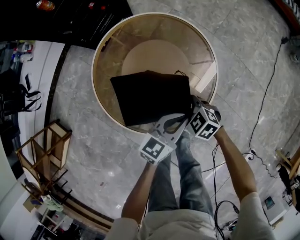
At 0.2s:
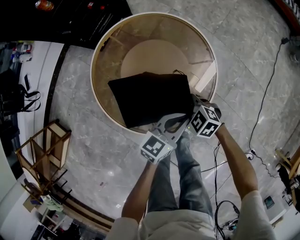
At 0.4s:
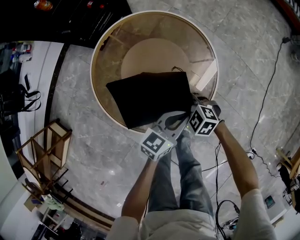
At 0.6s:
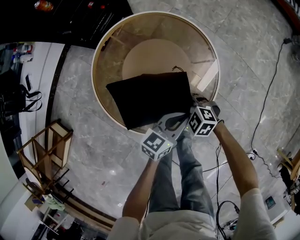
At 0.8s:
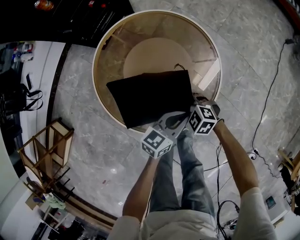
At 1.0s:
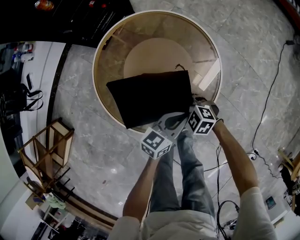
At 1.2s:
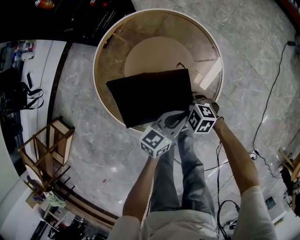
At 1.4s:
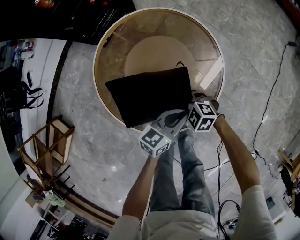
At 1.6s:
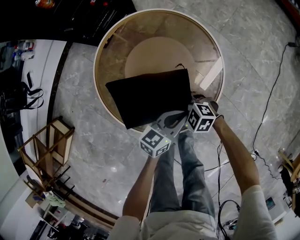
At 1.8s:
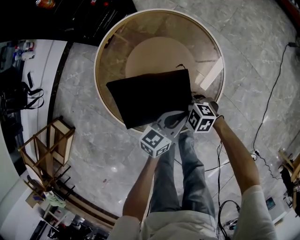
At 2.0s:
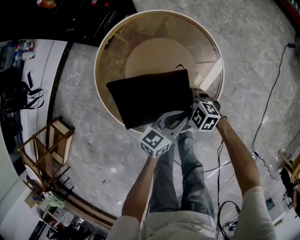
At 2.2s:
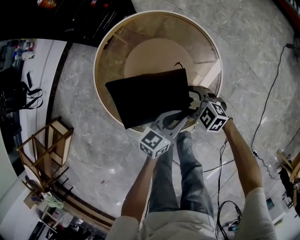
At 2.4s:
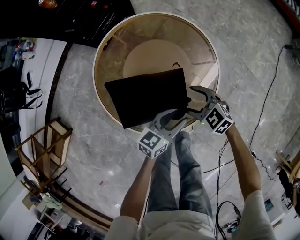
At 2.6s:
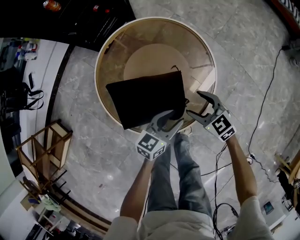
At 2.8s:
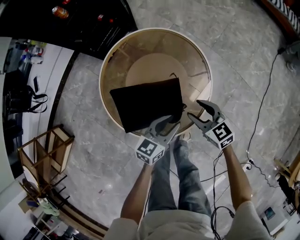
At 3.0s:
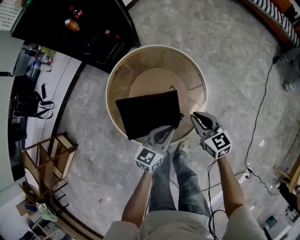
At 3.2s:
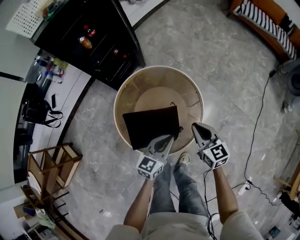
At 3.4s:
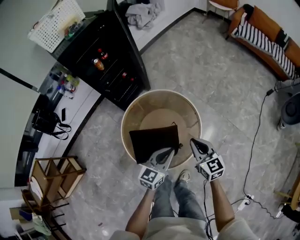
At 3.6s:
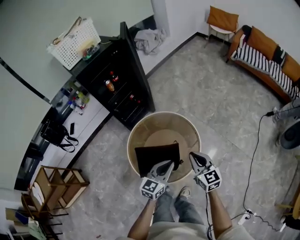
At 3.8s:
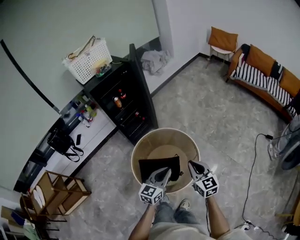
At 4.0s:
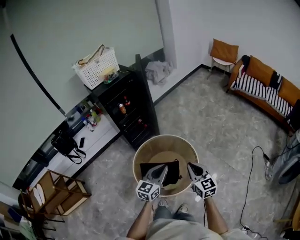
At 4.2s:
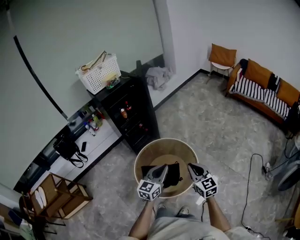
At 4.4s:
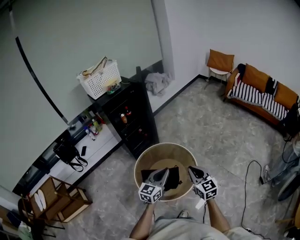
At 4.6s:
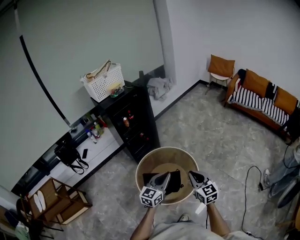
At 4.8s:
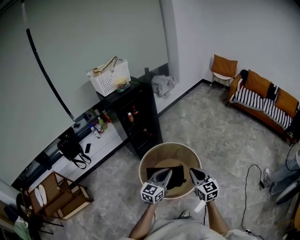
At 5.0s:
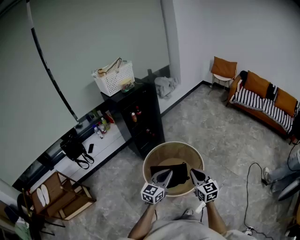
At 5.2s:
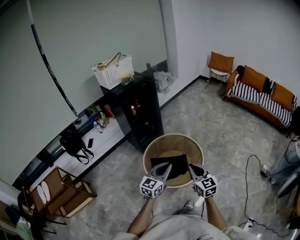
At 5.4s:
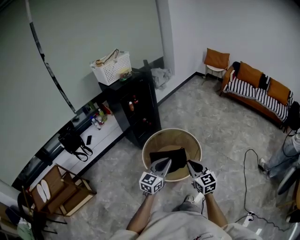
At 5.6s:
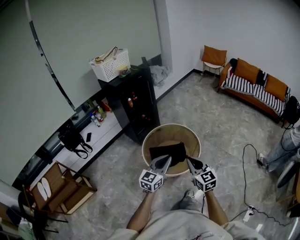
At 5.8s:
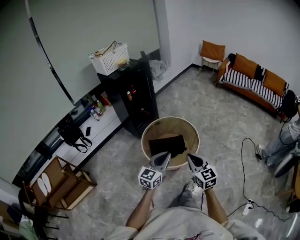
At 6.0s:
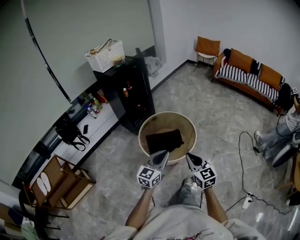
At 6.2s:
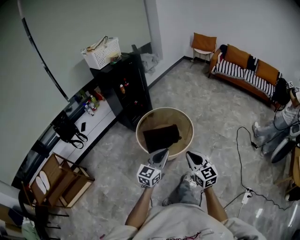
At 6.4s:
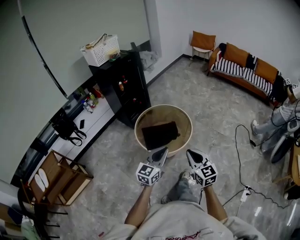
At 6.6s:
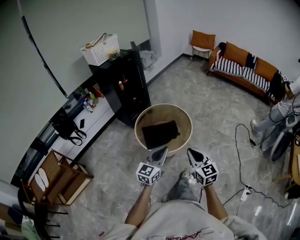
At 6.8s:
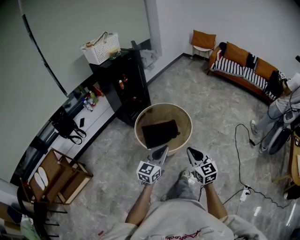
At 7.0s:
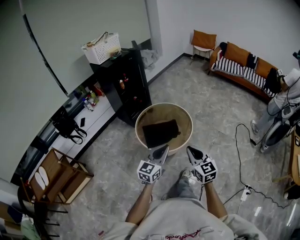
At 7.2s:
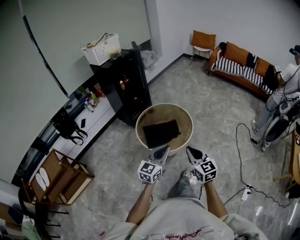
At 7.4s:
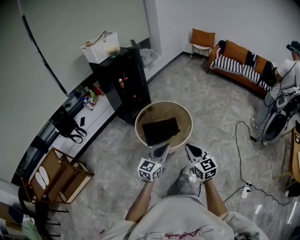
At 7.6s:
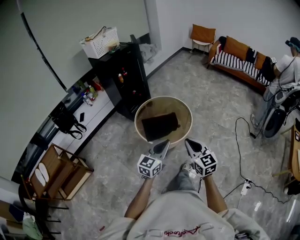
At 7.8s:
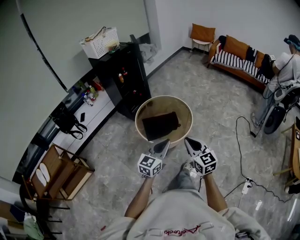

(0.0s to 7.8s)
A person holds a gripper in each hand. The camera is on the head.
0.0s - 1.6s: The left gripper moves downward, roughly 5 cm; the right gripper ends up approximately 5 cm from where it was.
1.6s - 3.2s: The right gripper goes roughly 25 cm upward, swivels about 60 degrees, and closes. Meanwhile the left gripper moves upward, approximately 15 cm, turns by approximately 20 degrees, and opens, then closes once more.
3.2s - 4.6s: The left gripper goes some 25 cm upward, while the right gripper travels upward and backward by about 30 cm.
4.6s - 6.2s: The grippers both shift backward by some 30 cm.
6.2s - 7.8s: There are only small adjustments of the grippers.

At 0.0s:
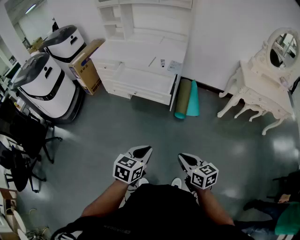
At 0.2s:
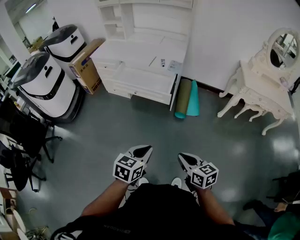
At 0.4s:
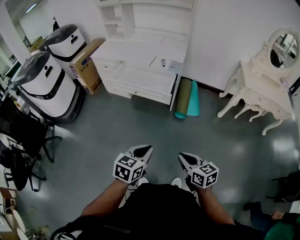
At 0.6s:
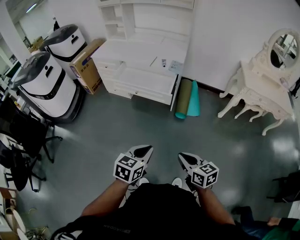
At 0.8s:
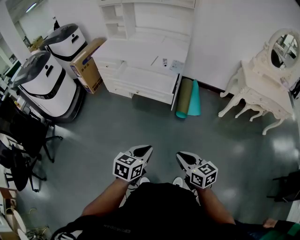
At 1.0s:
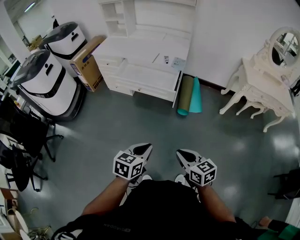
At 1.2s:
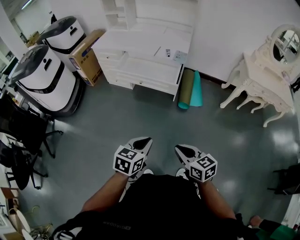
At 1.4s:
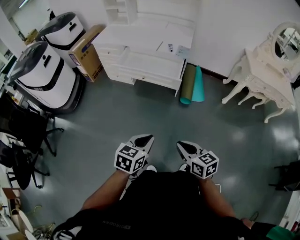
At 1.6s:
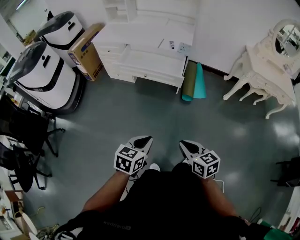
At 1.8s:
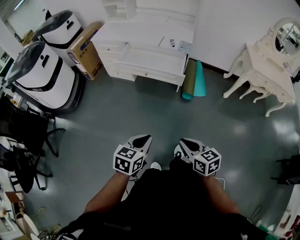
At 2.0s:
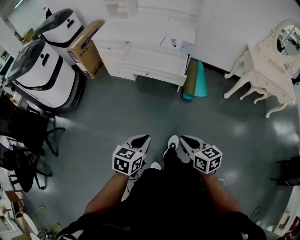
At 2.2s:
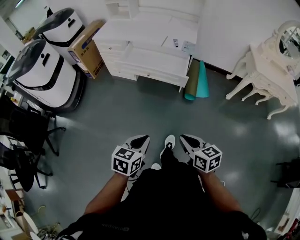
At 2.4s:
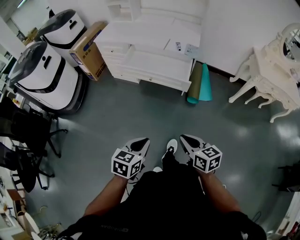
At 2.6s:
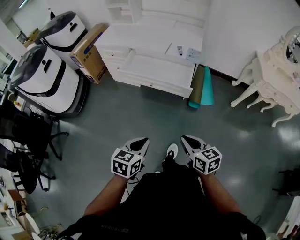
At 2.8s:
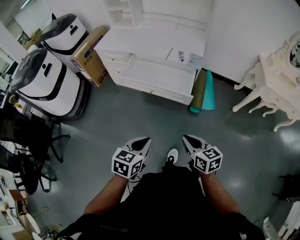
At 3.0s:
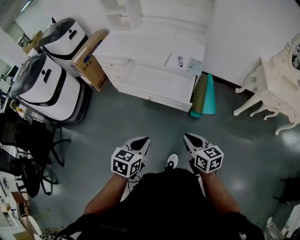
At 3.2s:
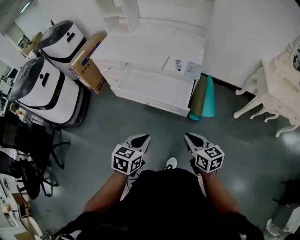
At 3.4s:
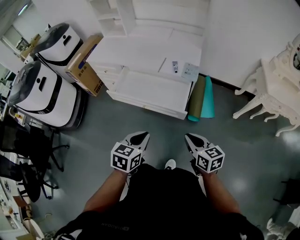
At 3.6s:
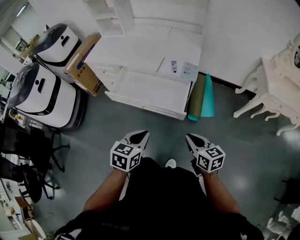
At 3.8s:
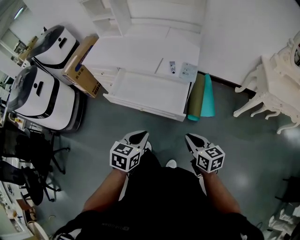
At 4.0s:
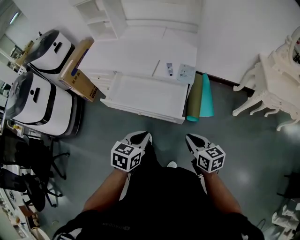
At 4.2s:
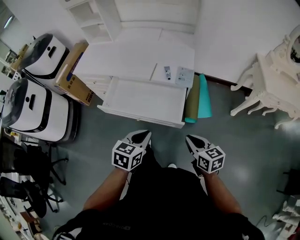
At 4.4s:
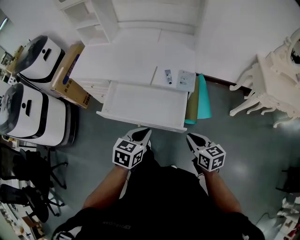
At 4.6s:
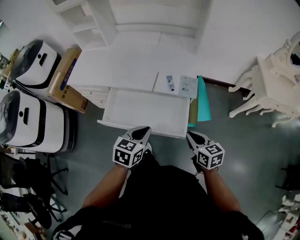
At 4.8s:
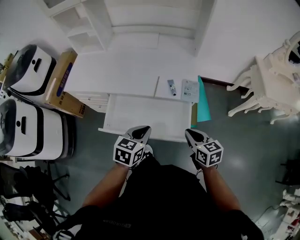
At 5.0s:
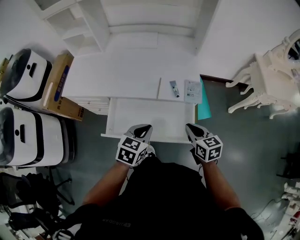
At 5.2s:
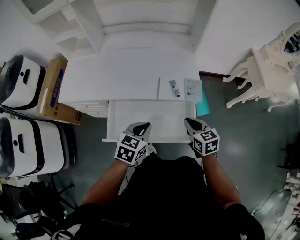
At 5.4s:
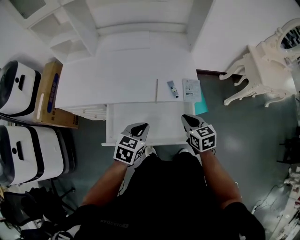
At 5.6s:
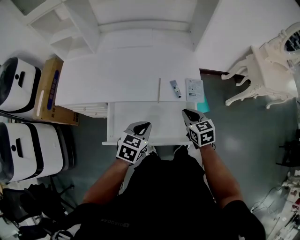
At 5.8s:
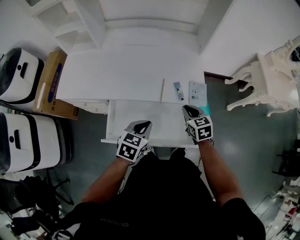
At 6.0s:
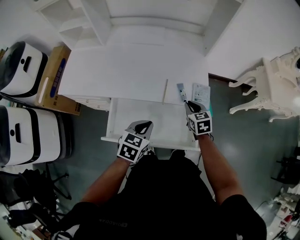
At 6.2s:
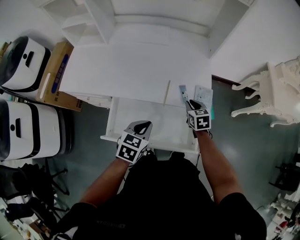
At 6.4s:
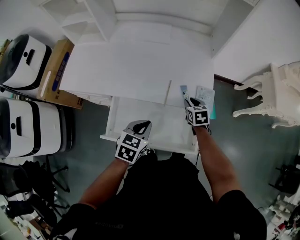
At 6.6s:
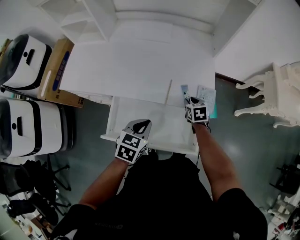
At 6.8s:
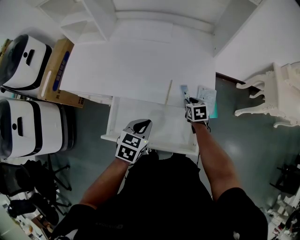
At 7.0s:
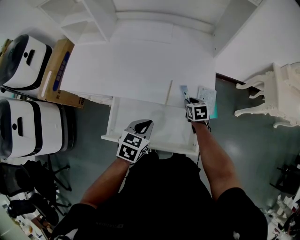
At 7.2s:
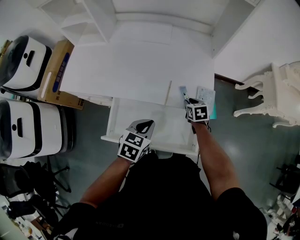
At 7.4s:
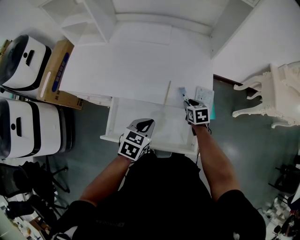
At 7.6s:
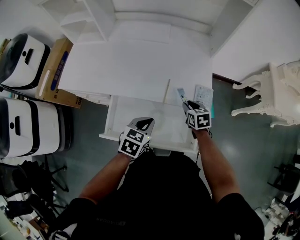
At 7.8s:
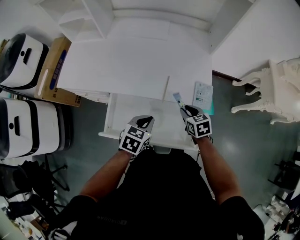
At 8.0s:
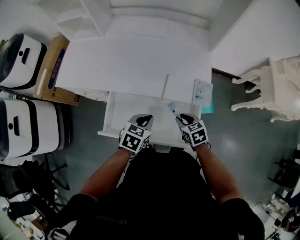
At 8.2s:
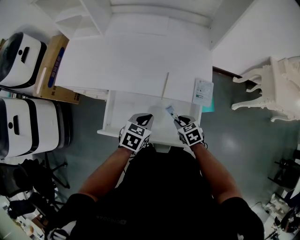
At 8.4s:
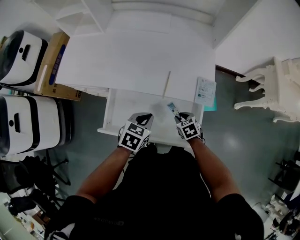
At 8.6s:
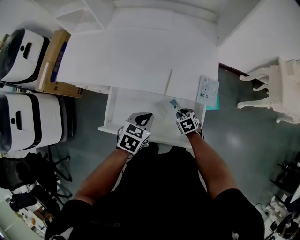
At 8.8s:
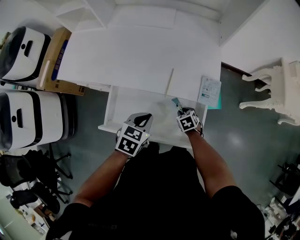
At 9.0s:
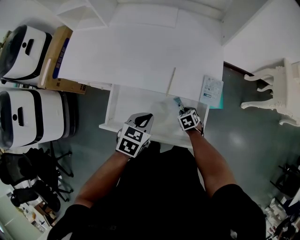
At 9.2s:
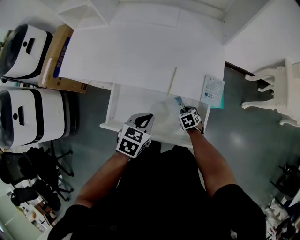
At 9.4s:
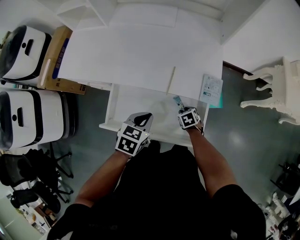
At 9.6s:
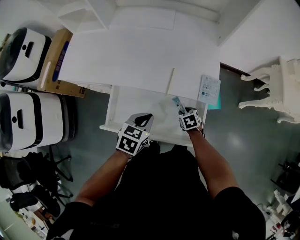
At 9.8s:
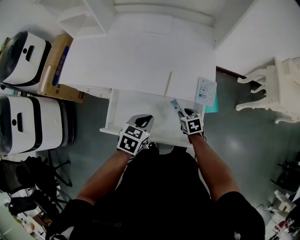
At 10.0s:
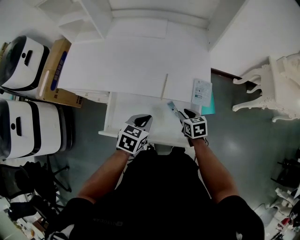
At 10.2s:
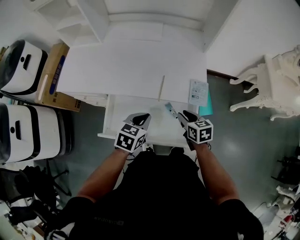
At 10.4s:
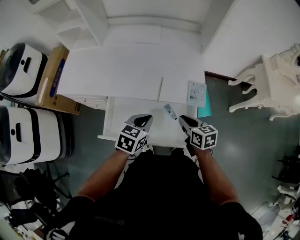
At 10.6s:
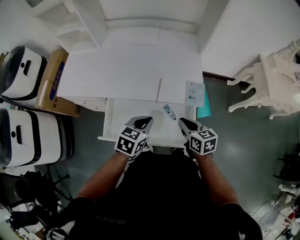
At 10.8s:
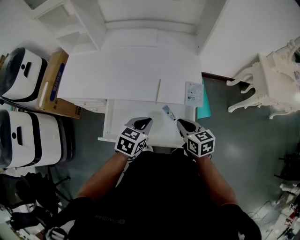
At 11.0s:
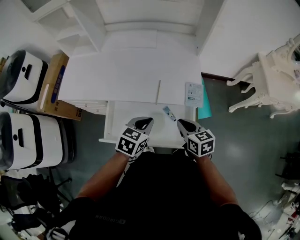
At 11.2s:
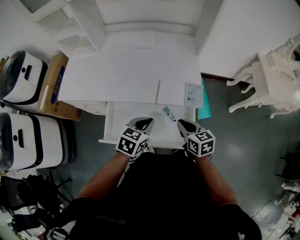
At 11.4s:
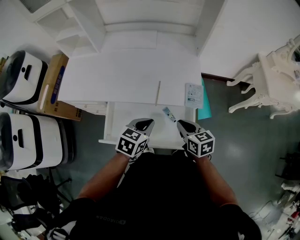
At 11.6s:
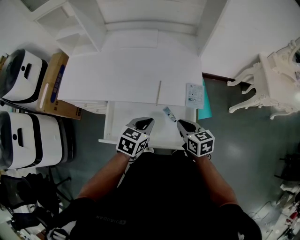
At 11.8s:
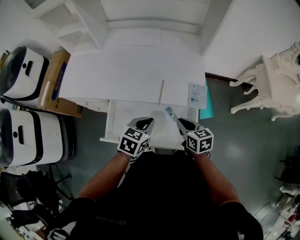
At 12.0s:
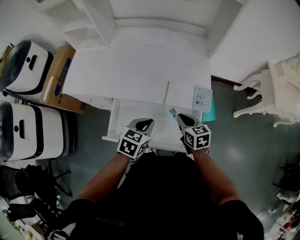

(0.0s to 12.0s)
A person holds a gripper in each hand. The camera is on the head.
0.0s - 1.6s: Both grippers travel together to the left, about 10 cm.
1.6s - 3.0s: The grippers both shift forward by roughly 20 cm.
3.0s - 4.4s: The two grippers go about 20 cm forward.
4.4s - 6.0s: Both grippers travel together forward and to the left, roughly 25 cm. The right gripper turns by some 20 degrees.
7.6s - 9.0s: The right gripper shifts approximately 20 cm downward and backward, and turns by about 20 degrees.
9.0s - 10.4s: The right gripper is displaced upward by about 25 cm, and points its fingers approximately 30 degrees further upward.
10.4s - 12.0s: There are only small adjustments of the grippers.

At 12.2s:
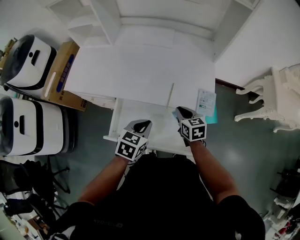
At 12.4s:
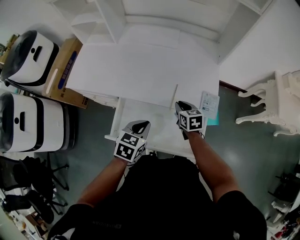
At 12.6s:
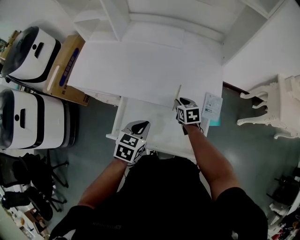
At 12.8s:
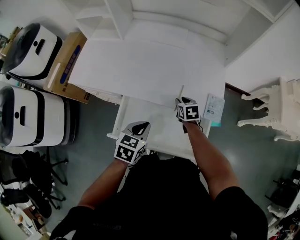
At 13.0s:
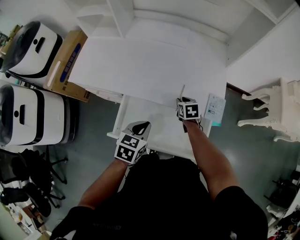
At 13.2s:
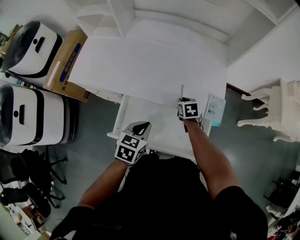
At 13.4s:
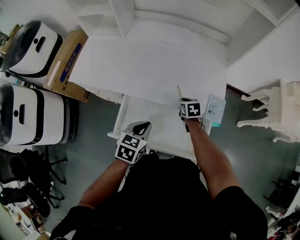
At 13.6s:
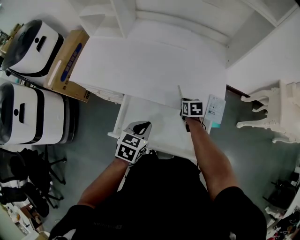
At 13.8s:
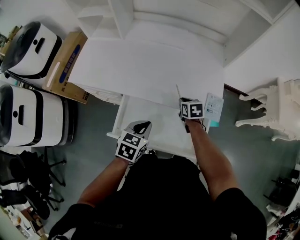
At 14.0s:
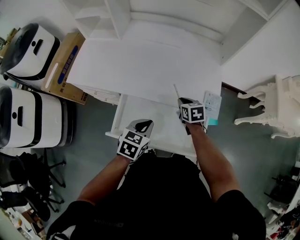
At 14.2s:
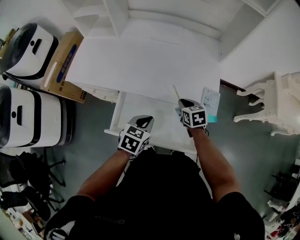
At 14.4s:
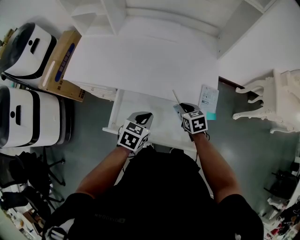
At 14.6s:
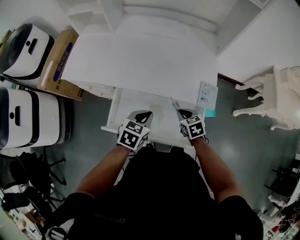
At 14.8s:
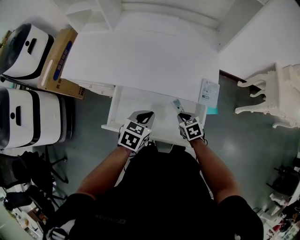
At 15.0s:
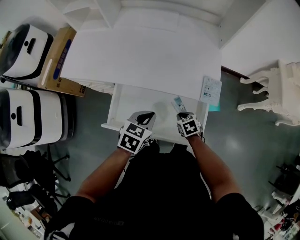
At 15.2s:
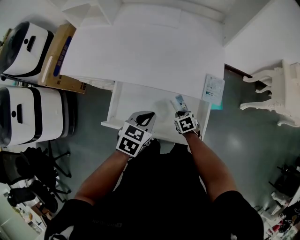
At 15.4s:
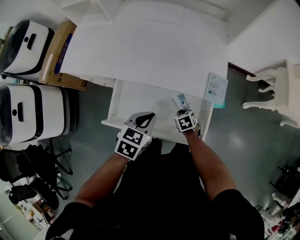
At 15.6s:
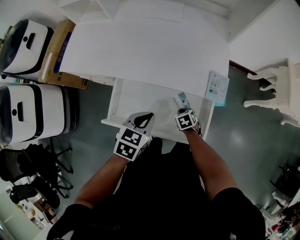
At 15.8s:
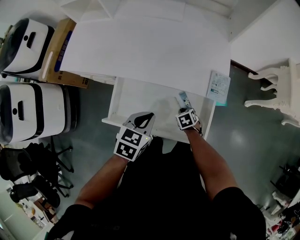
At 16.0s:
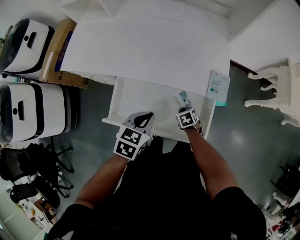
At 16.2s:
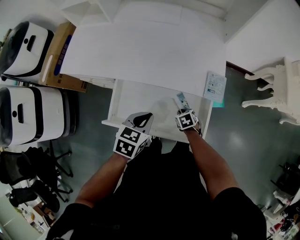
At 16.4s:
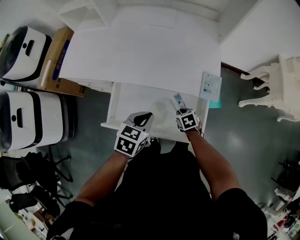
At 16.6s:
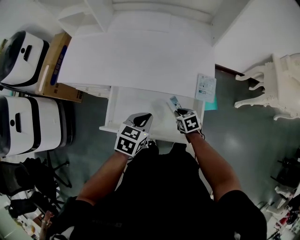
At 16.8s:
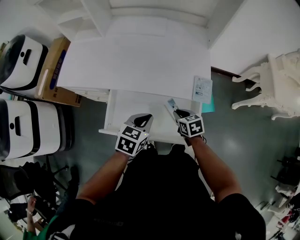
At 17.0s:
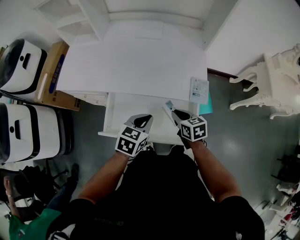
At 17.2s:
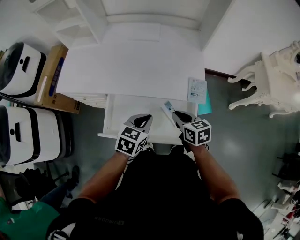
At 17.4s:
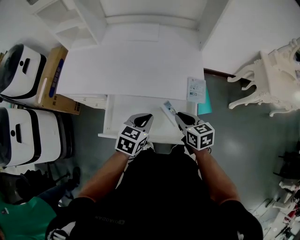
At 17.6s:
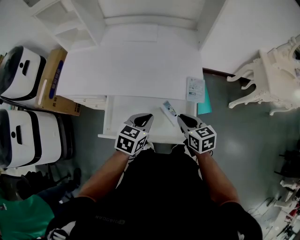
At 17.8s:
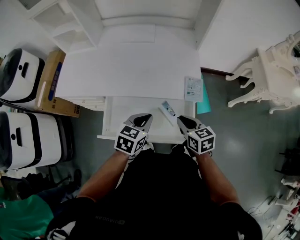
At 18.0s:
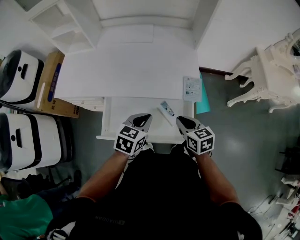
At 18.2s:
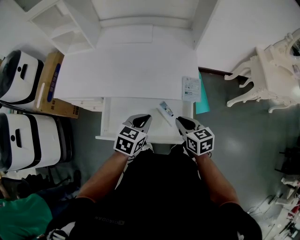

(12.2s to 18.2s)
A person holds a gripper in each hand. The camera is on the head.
12.2s - 13.8s: The right gripper shifts about 10 cm forward and downward.
13.8s - 15.2s: The right gripper is displaced backward and downward by some 20 cm, while the left gripper travels to the right by some 5 cm.
15.2s - 16.6s: The right gripper moves upward, roughly 5 cm.
16.6s - 18.2s: The left gripper shifts by roughly 5 cm; the right gripper moves upward, some 15 cm, and rotates approximately 20 degrees.
